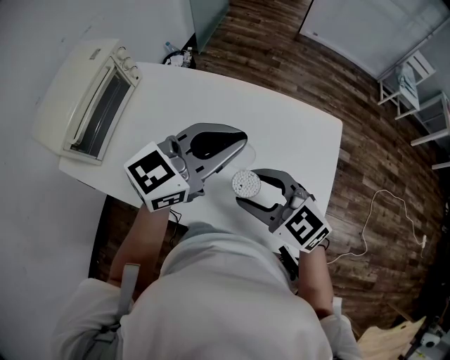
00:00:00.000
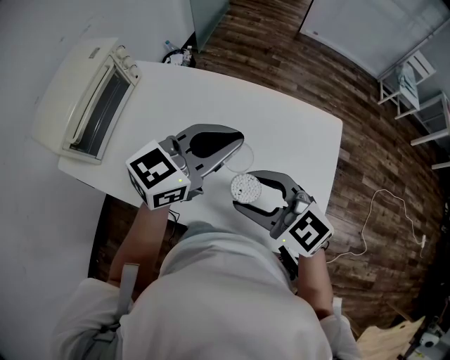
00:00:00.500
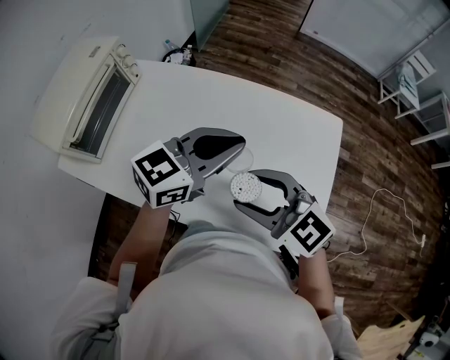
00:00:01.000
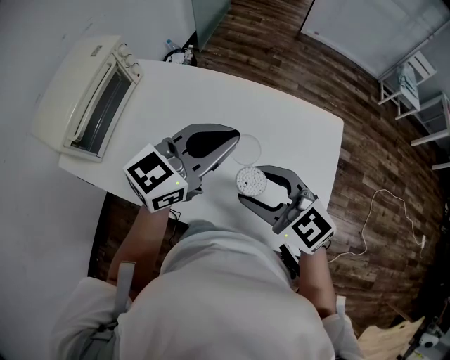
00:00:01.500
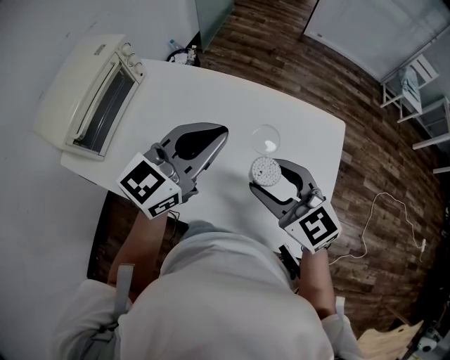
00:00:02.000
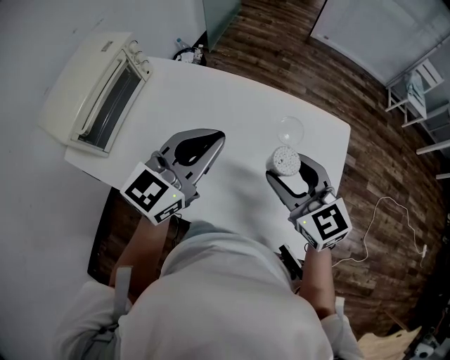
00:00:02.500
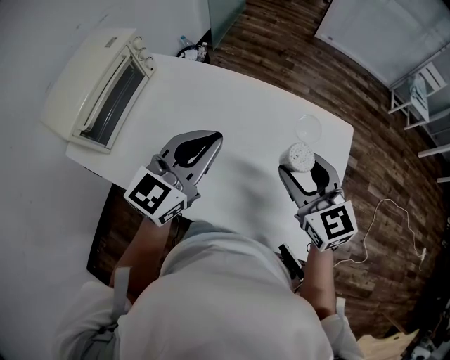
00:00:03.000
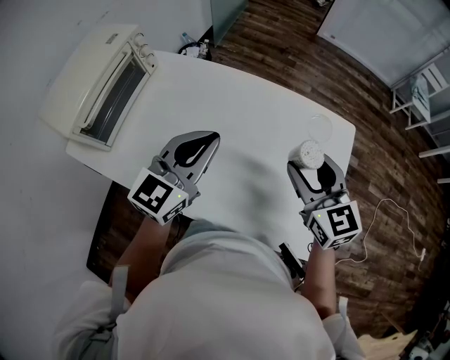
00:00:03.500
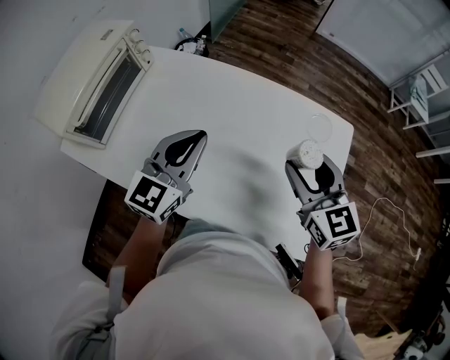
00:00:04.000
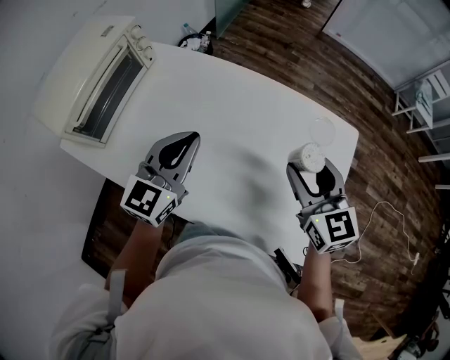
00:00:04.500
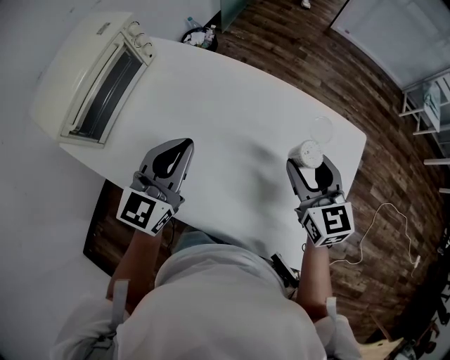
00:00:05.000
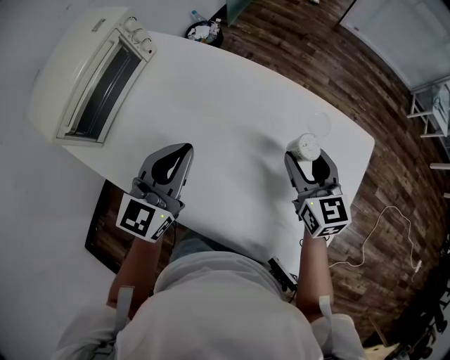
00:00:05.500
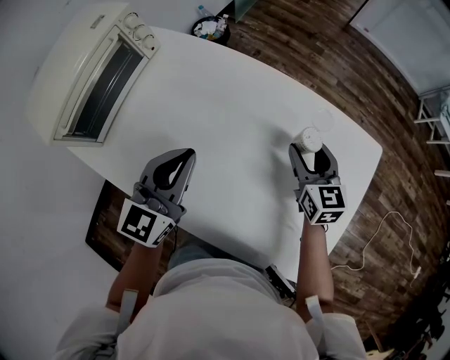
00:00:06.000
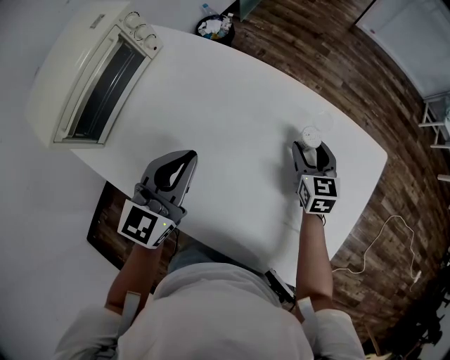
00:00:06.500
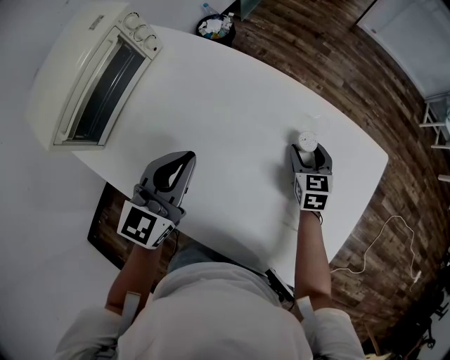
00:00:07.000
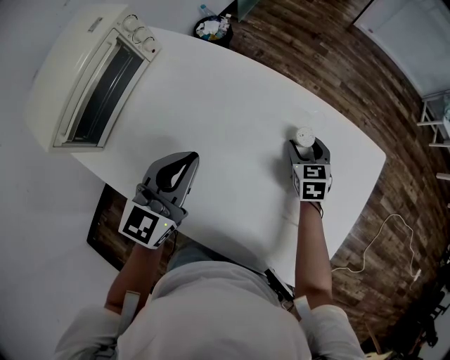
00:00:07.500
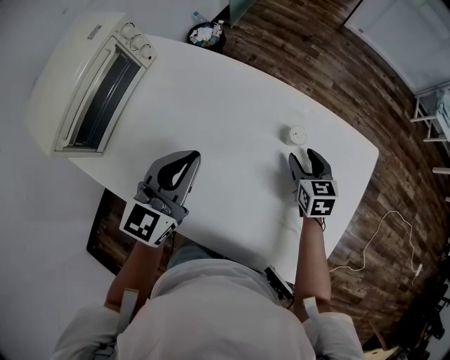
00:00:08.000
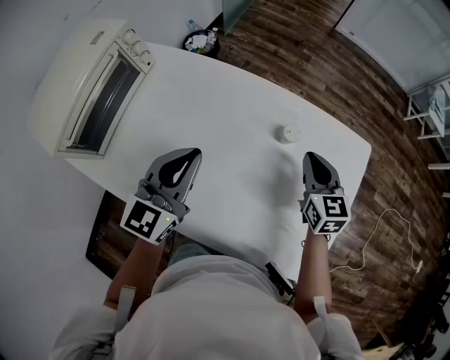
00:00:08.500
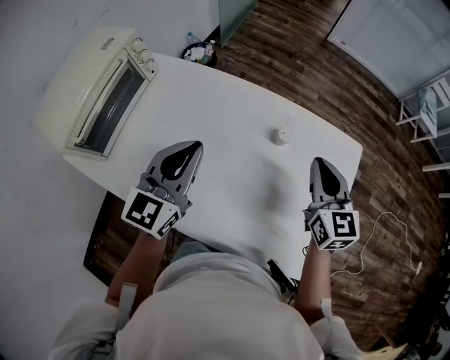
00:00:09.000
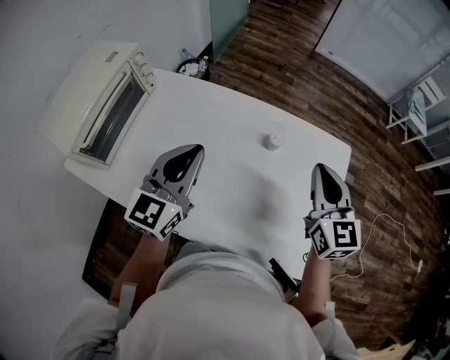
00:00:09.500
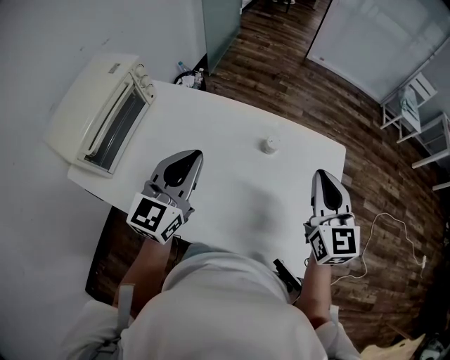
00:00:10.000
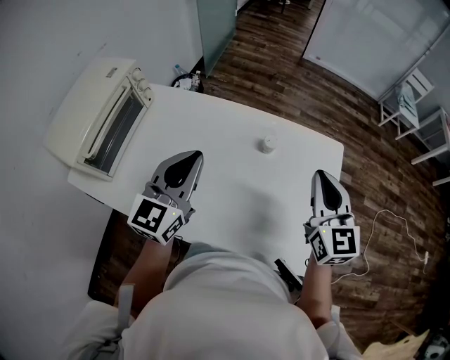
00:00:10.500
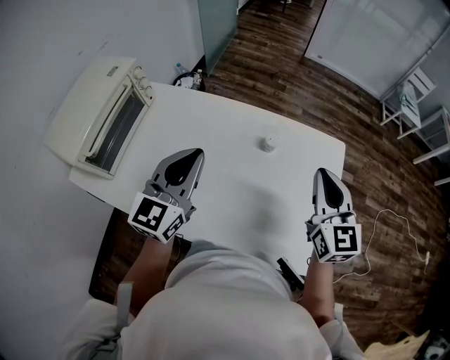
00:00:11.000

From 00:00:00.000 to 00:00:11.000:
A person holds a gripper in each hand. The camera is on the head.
From 00:00:00.000 to 00:00:02.000: The grippers make only small movements.
From 00:00:02.000 to 00:00:03.500: The left gripper shifts by some 5 cm; the right gripper moves to the right, about 5 cm, and turns by approximately 20 degrees.
From 00:00:03.500 to 00:00:05.500: The right gripper travels downward and forward by some 15 cm, while the left gripper shifts about 10 cm downward and to the left.
From 00:00:05.500 to 00:00:07.500: The right gripper moves downward and forward, approximately 20 cm, and turns by approximately 20 degrees.
From 00:00:07.500 to 00:00:09.000: The left gripper shifts roughly 5 cm upward. The right gripper heads upward and backward, covering some 25 cm, swivels roughly 30 degrees, and closes up.
From 00:00:09.000 to 00:00:11.000: The right gripper moves upward and backward, roughly 10 cm, while the left gripper is displaced upward by some 5 cm.

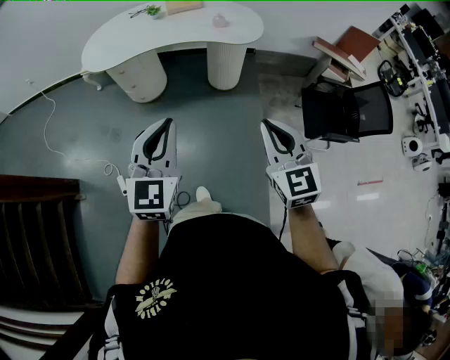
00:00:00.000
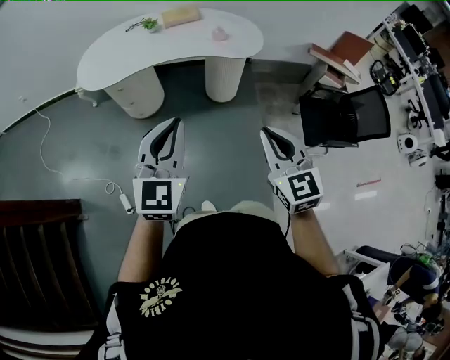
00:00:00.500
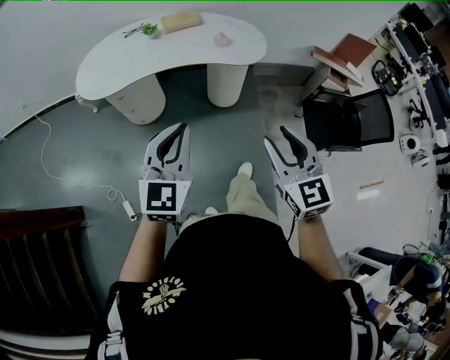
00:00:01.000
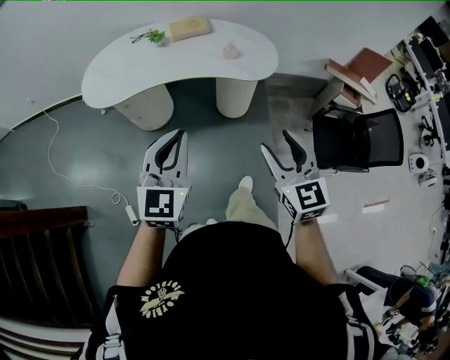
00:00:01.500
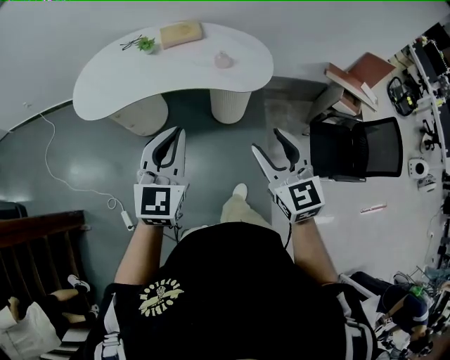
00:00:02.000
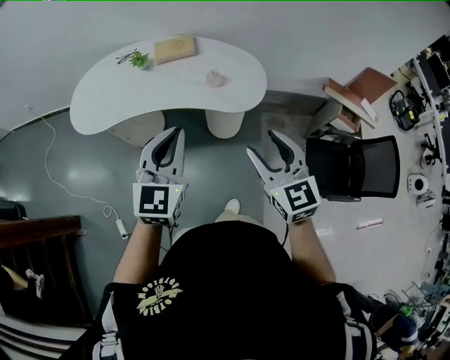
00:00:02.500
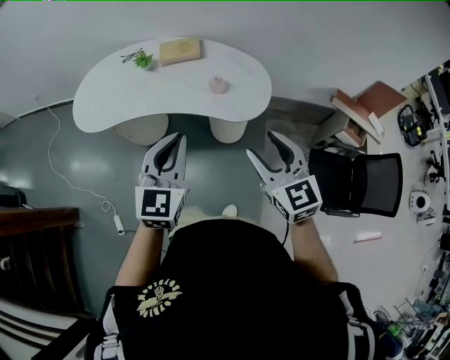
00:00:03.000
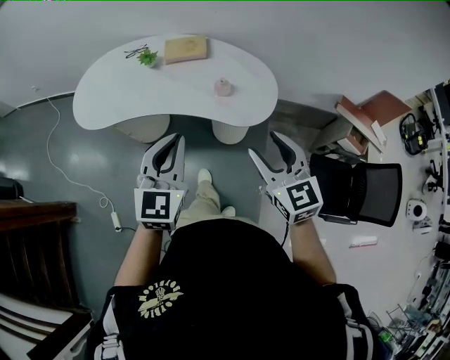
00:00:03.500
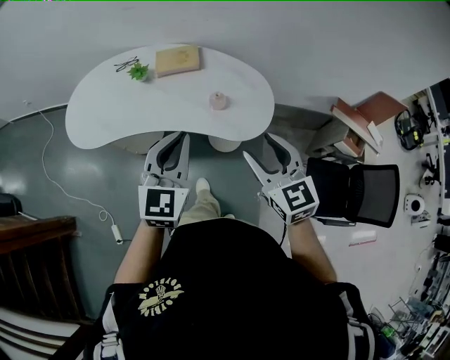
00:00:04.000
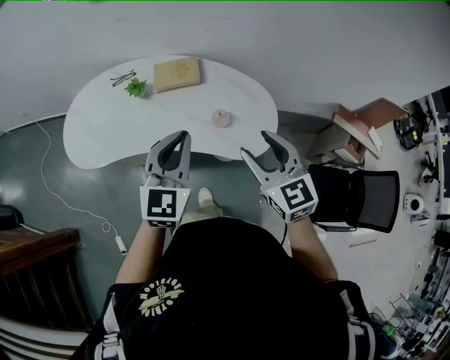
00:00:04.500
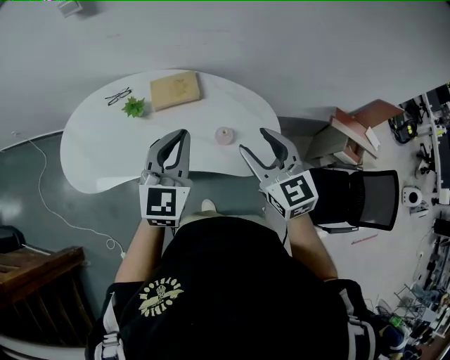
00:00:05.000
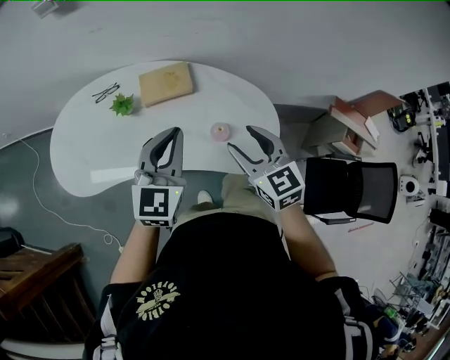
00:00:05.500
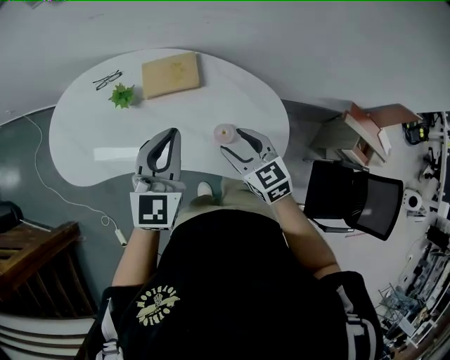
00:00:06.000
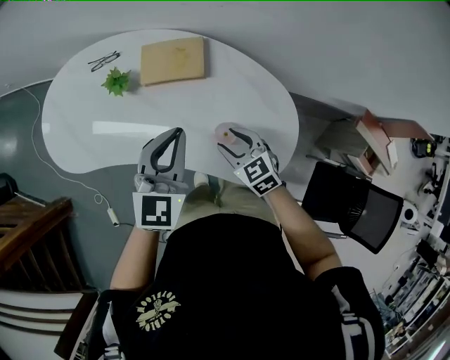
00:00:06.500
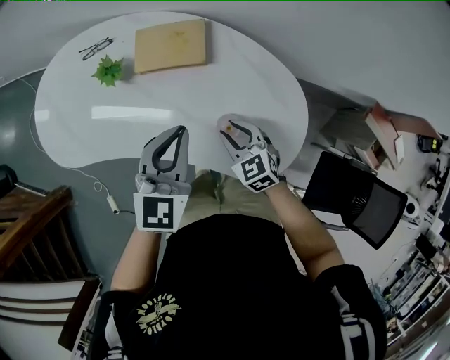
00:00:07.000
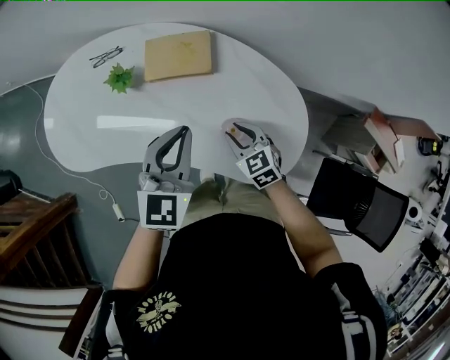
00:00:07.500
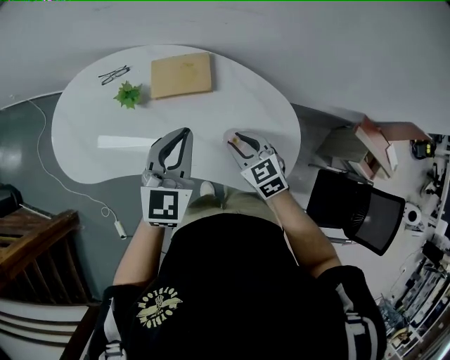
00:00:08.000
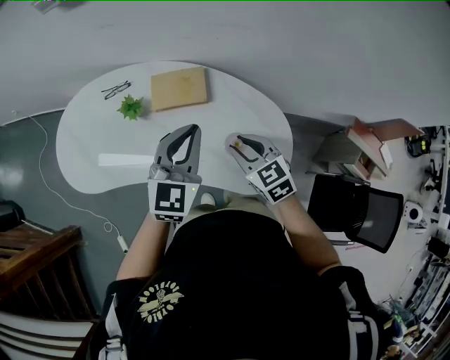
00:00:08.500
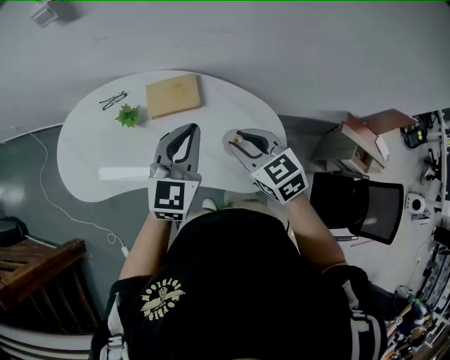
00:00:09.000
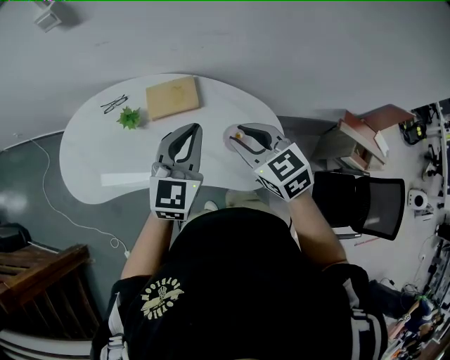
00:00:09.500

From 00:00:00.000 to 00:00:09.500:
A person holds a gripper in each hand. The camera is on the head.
From 00:00:00.000 to 00:00:02.000: Both grippers move forward, approximately 30 cm. The right gripper opens.
From 00:00:02.000 to 00:00:04.000: The right gripper heads forward, covering approximately 25 cm, while the left gripper shifts approximately 25 cm forward and to the right.
From 00:00:04.000 to 00:00:05.500: Both grippers move forward, roughly 20 cm.
From 00:00:05.500 to 00:00:07.500: The left gripper heads downward and forward, covering approximately 15 cm. Meanwhile the right gripper shifts approximately 25 cm downward, swivels approximately 20 degrees, and closes up.
From 00:00:07.500 to 00:00:09.500: The left gripper heads upward, covering some 10 cm. The right gripper moves upward, about 25 cm.

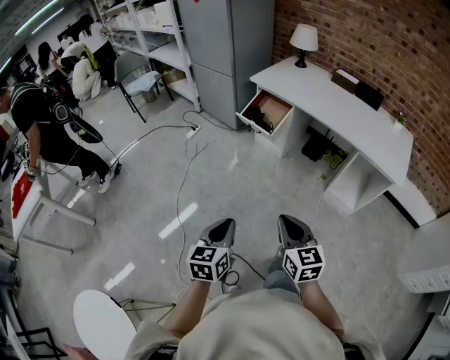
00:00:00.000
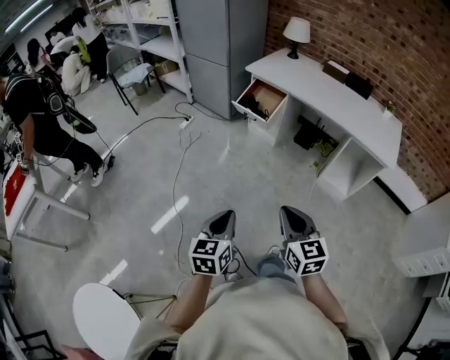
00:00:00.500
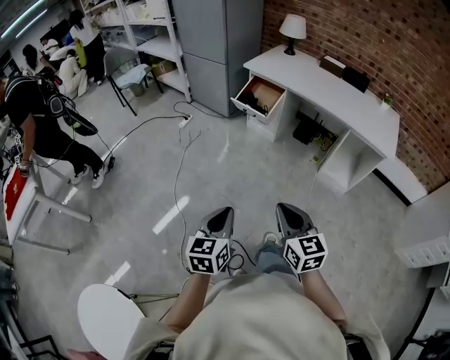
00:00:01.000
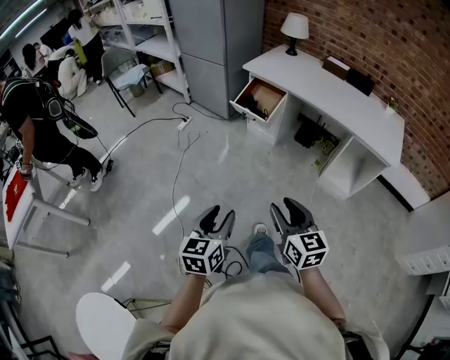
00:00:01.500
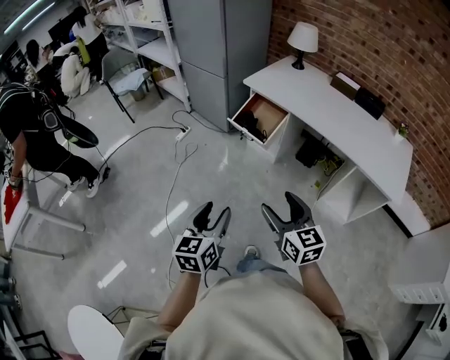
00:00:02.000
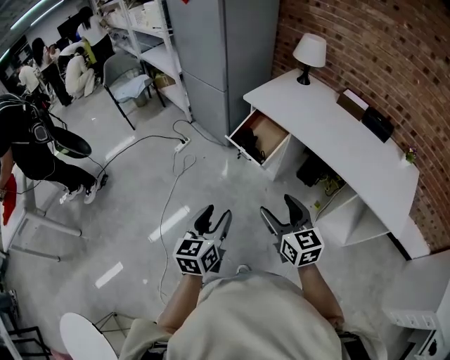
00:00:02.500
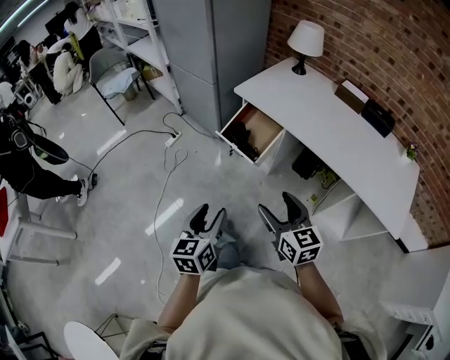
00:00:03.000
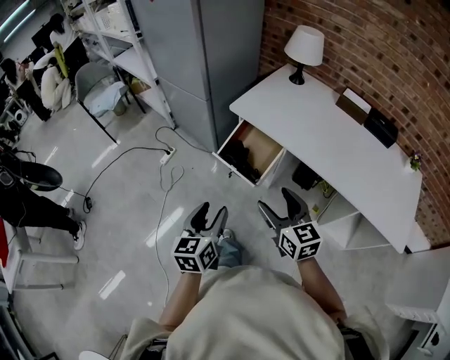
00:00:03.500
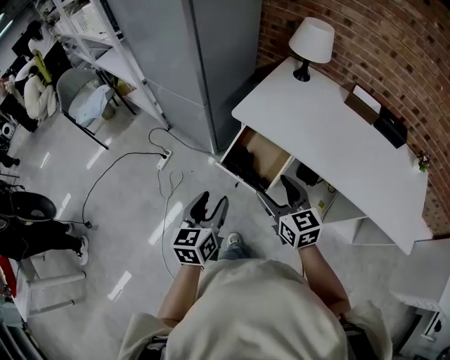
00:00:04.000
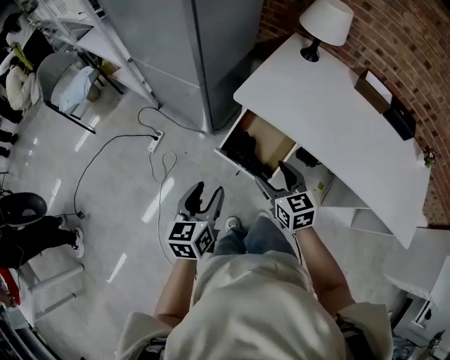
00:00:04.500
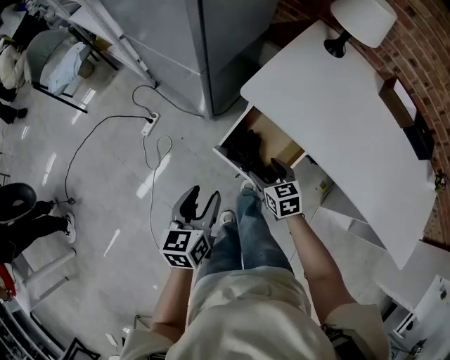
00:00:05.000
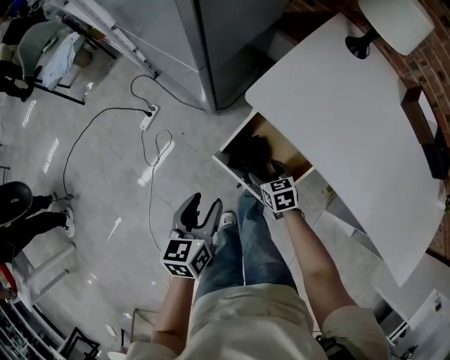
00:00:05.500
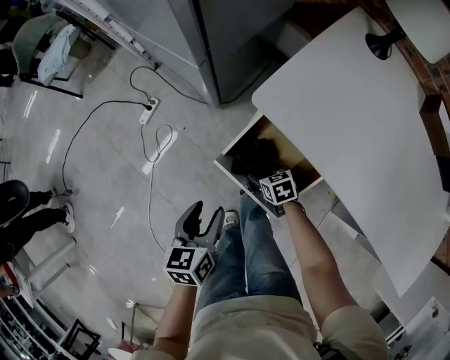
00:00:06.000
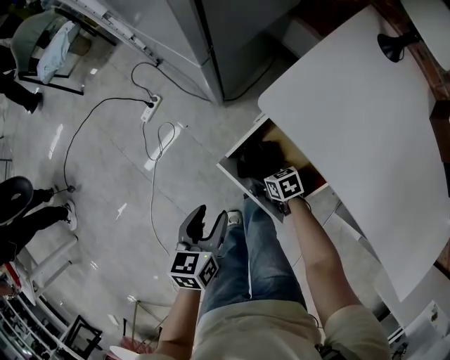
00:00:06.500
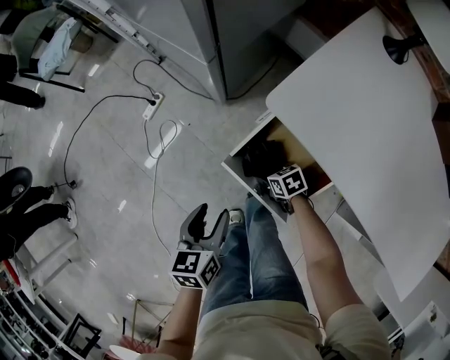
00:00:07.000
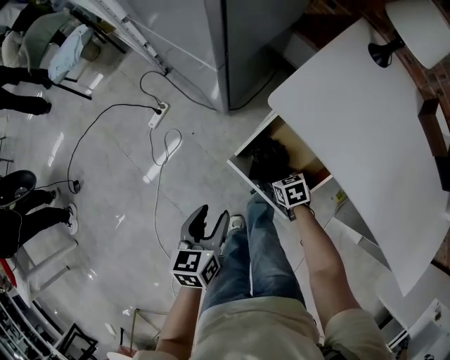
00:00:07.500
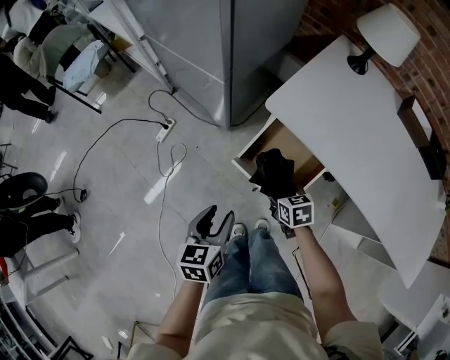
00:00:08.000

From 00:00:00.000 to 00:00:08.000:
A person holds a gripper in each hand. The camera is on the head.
From 00:00:00.000 to 00:00:02.000: The grippers both shift forward by about 15 cm. The left gripper opens up; the right gripper opens its fingers.
From 00:00:02.000 to 00:00:04.000: Both grippers are carried forward, about 50 cm.
From 00:00:04.000 to 00:00:06.000: The left gripper travels downward and forward by some 25 cm, and turns by some 20 degrees. Meanwhile the right gripper is displaced downward and forward by roughly 50 cm, and tips its fingers downward by some 40 degrees.
From 00:00:06.000 to 00:00:08.000: The left gripper moves upward, to the left and backward, approximately 10 cm. Meanwhile the right gripper is displaced upward by about 15 cm, and closes up.
